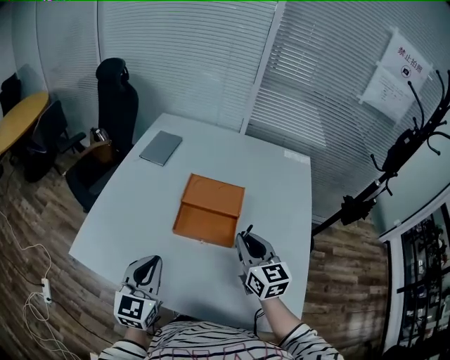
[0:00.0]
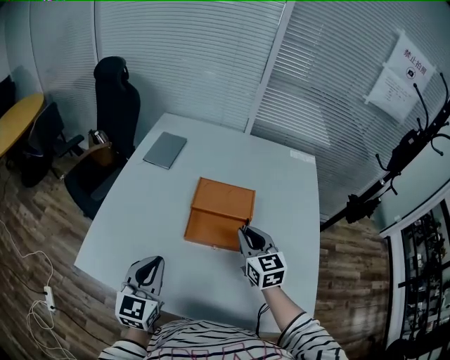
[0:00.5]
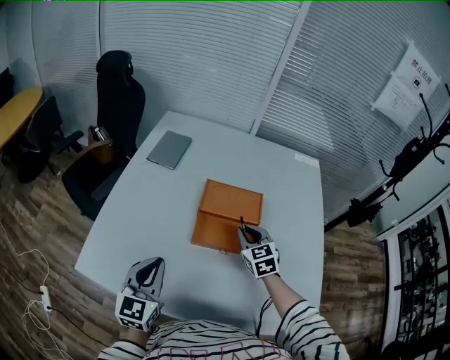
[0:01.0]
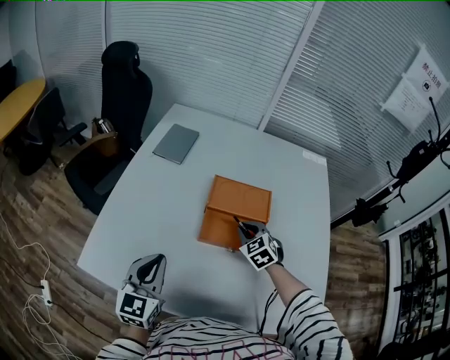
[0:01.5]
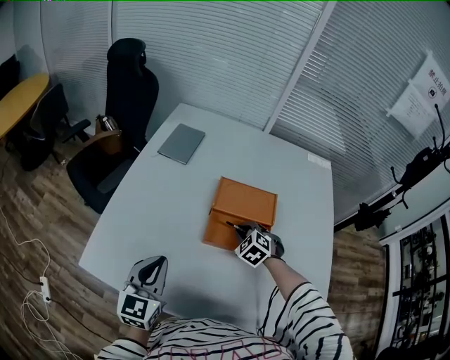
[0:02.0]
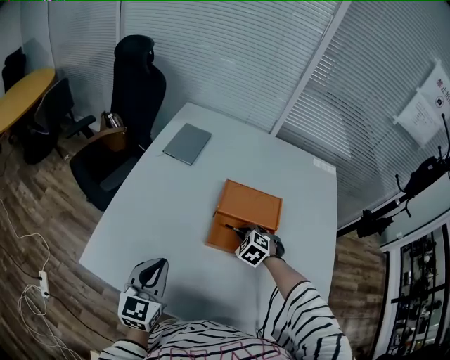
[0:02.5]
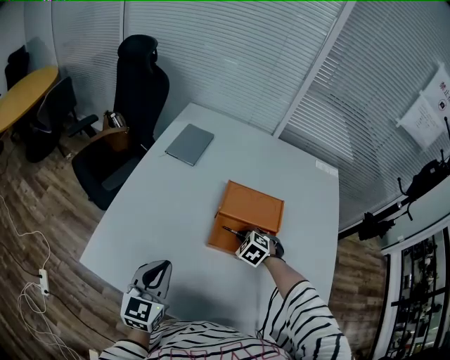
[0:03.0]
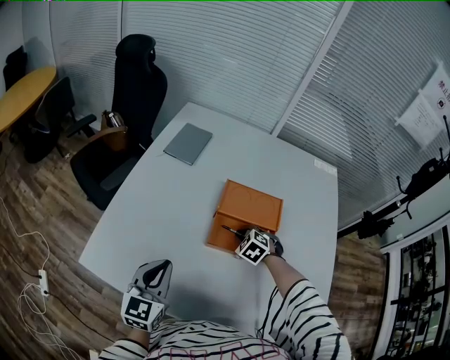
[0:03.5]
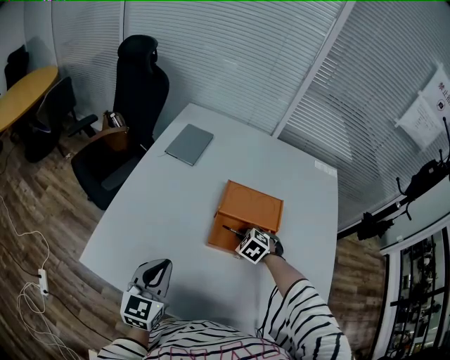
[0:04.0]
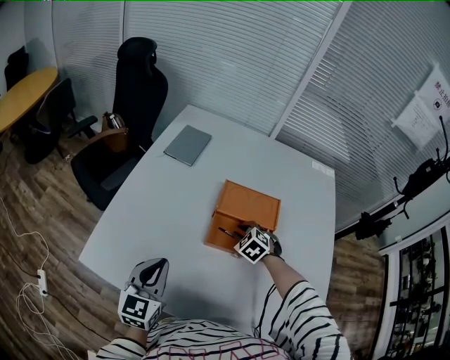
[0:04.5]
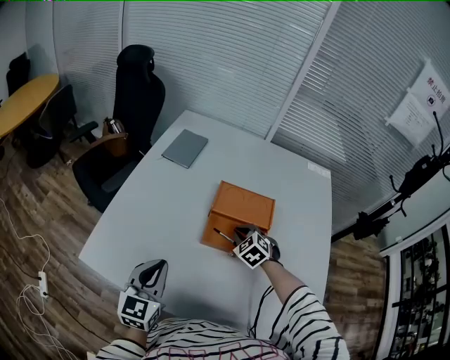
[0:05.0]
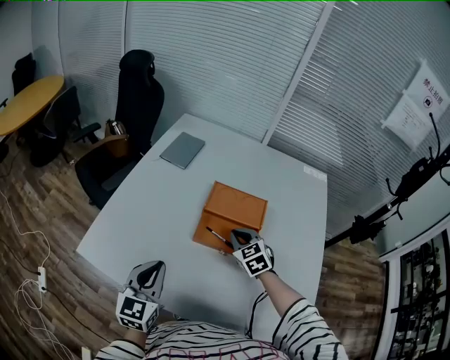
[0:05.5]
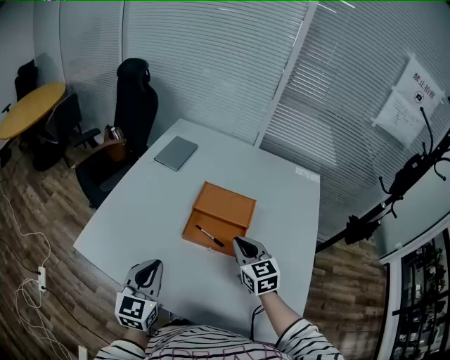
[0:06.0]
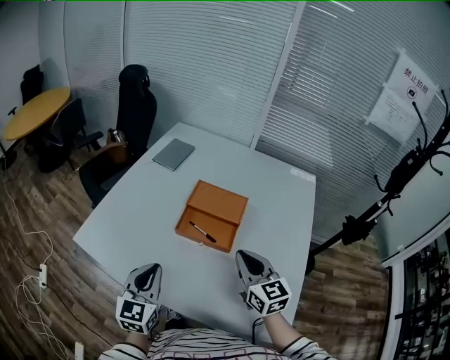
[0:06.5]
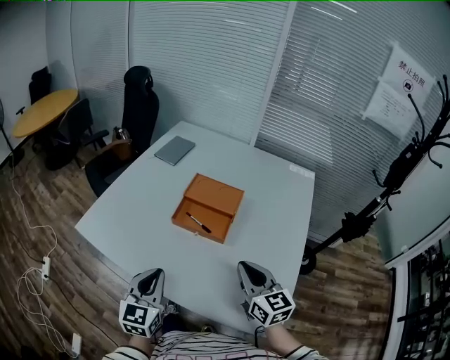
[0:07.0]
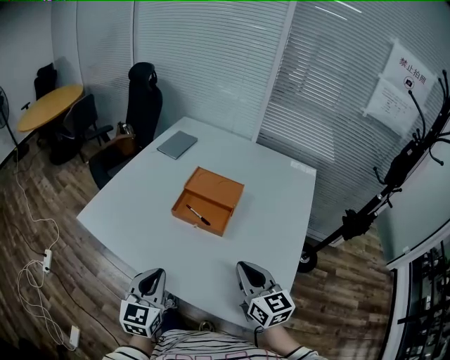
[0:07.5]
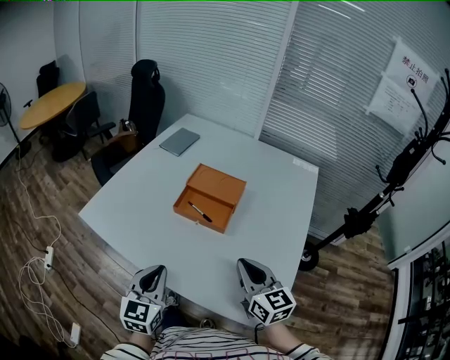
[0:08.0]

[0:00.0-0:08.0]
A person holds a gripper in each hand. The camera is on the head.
0:00.0 to 0:02.0: The left gripper is displaced to the left and forward by about 10 cm, while the right gripper shifts roughly 25 cm downward, forward and to the left, and tips its fingers downward by about 40 degrees.
0:02.0 to 0:04.0: The grippers move only a little.
0:04.0 to 0:06.0: The right gripper moves upward and backward, some 20 cm, and points its fingers roughly 40 degrees further upward. Meanwhile the left gripper shifts roughly 10 cm to the right, backward and upward.
0:06.0 to 0:08.0: The right gripper travels backward by roughly 20 cm. The left gripper goes some 15 cm backward and to the right.

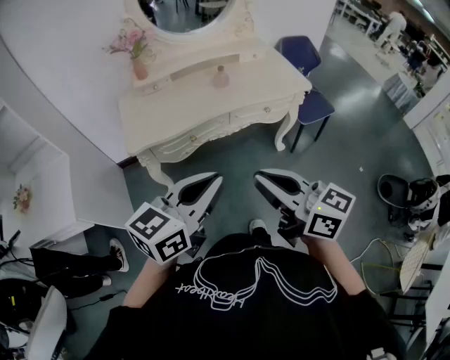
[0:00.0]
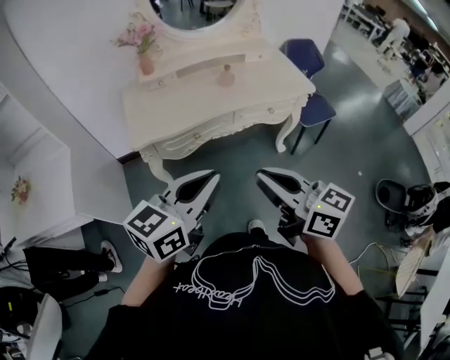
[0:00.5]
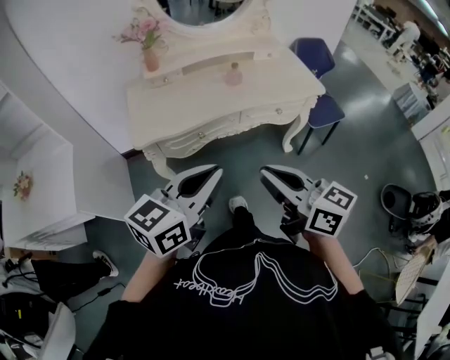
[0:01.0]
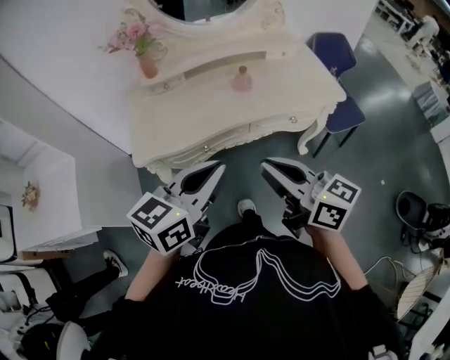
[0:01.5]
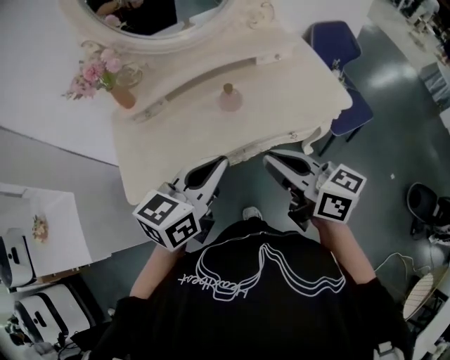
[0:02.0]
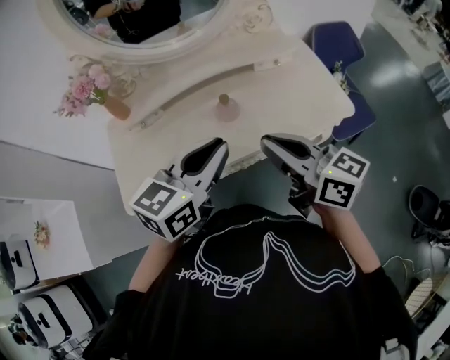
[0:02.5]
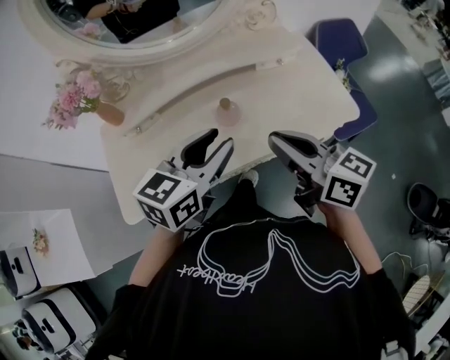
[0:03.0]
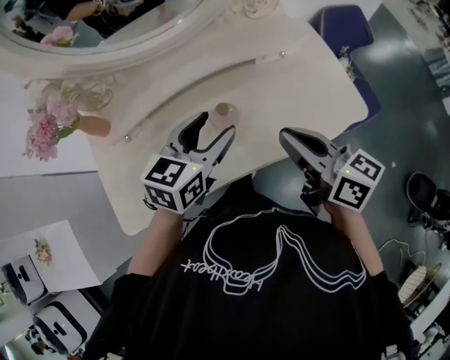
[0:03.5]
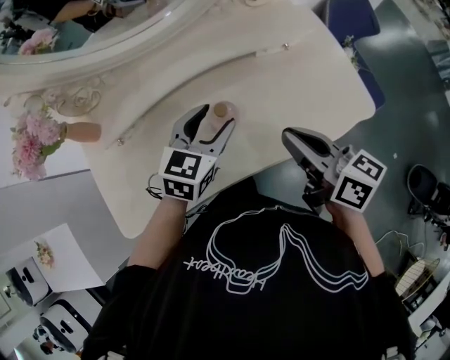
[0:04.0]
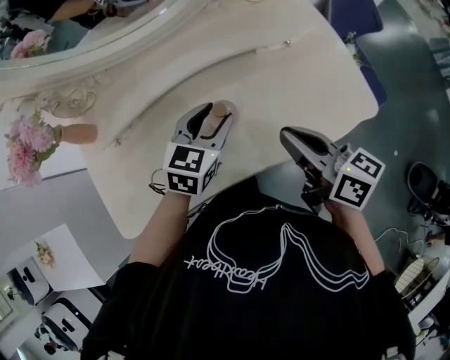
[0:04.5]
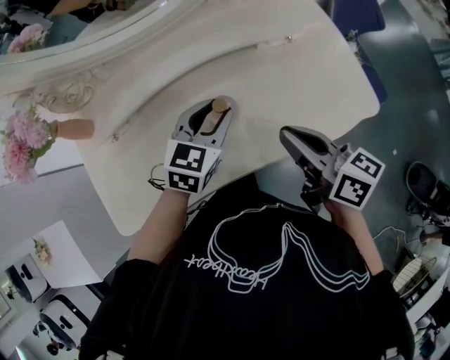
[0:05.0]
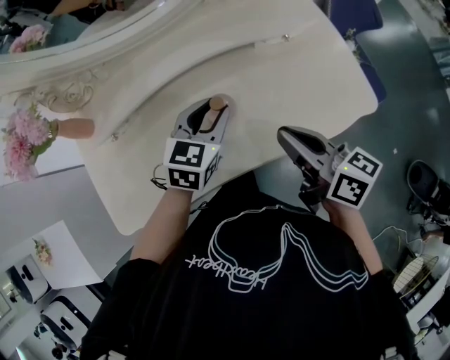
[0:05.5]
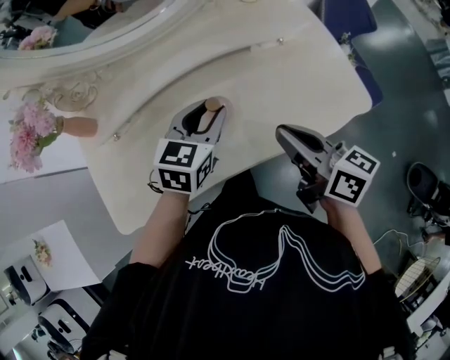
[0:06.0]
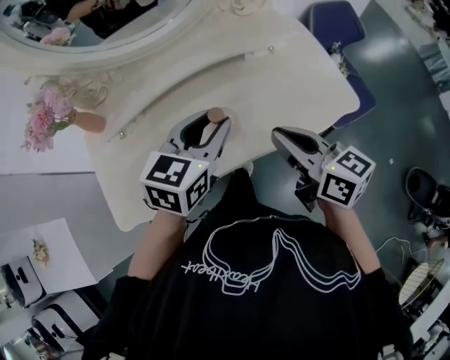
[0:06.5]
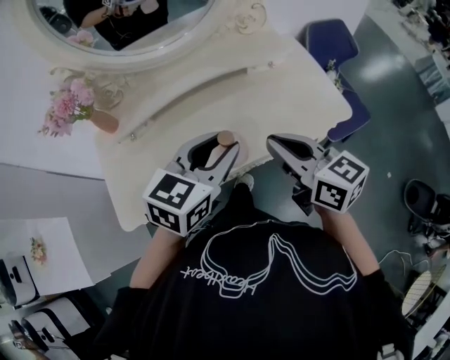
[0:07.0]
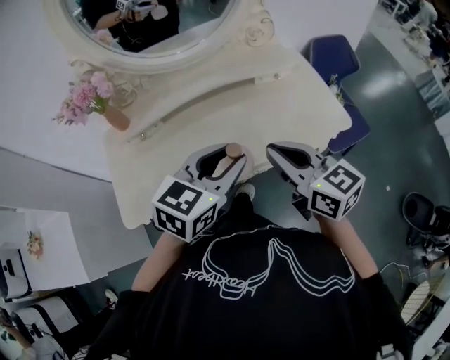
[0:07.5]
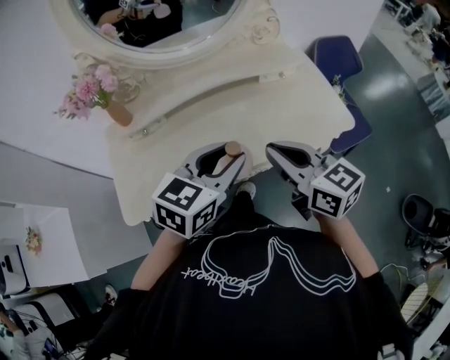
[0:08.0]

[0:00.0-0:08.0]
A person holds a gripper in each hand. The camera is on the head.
0:00.0 to 0:02.0: The grippers both shift forward by some 30 cm.
0:02.0 to 0:04.0: The two grippers go roughly 25 cm forward and downward. The left gripper rotates roughly 20 degrees, and opens its fingers.
0:04.0 to 0:06.0: The left gripper closes.
0:06.0 to 0:08.0: The left gripper moves backward and upward, roughly 20 cm. Meanwhile the right gripper shifts about 15 cm backward, upward and to the left, and rotates about 30 degrees.

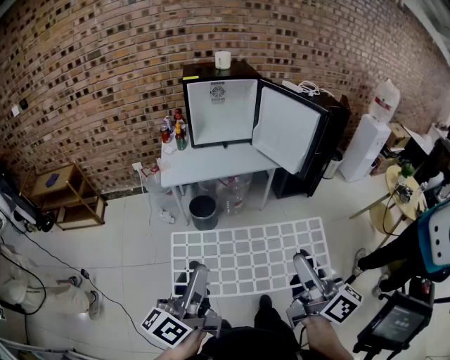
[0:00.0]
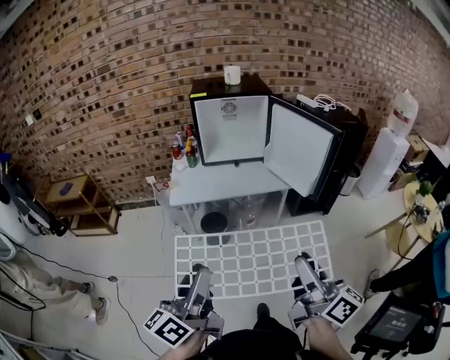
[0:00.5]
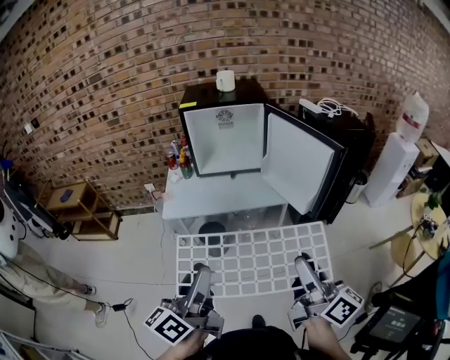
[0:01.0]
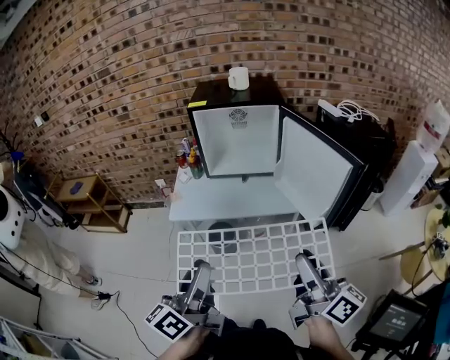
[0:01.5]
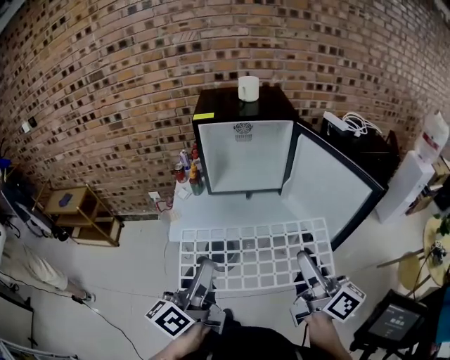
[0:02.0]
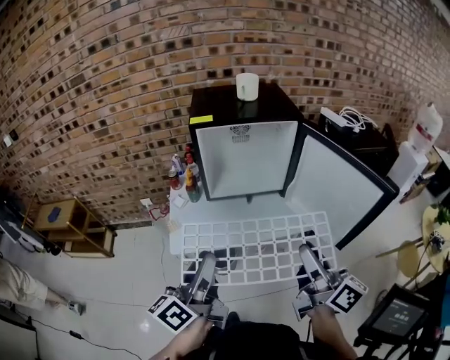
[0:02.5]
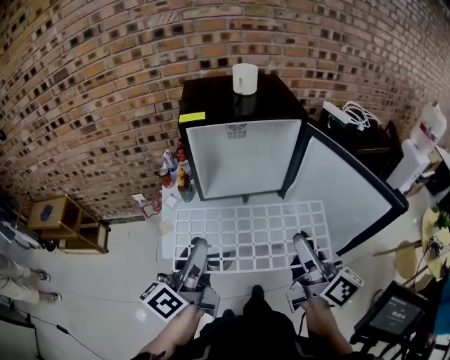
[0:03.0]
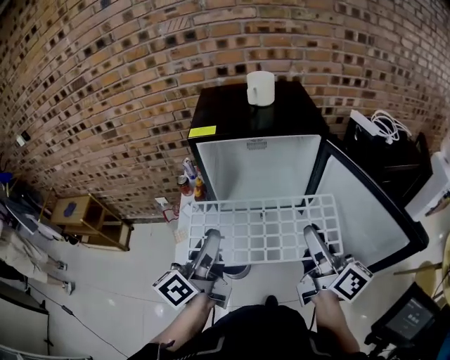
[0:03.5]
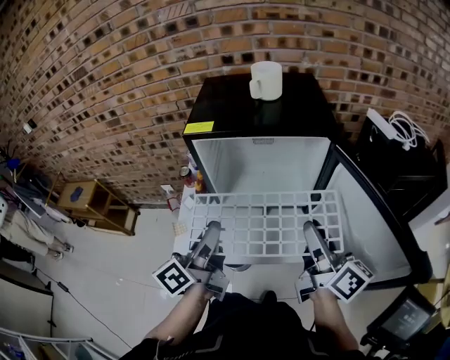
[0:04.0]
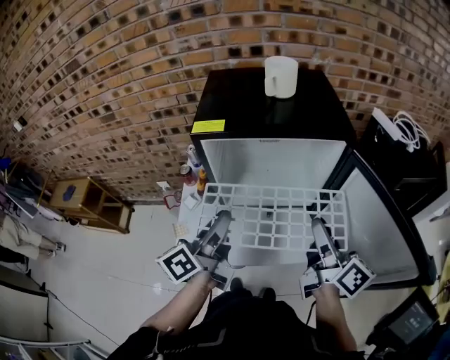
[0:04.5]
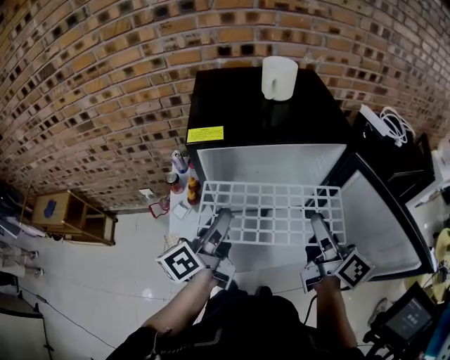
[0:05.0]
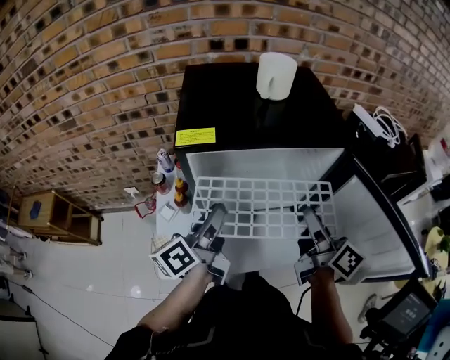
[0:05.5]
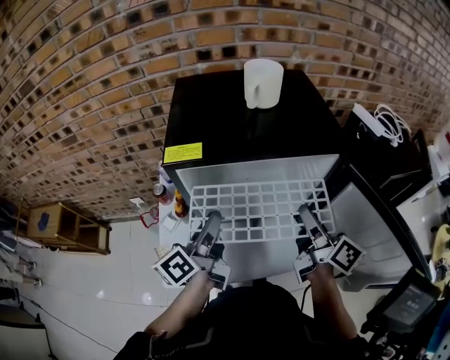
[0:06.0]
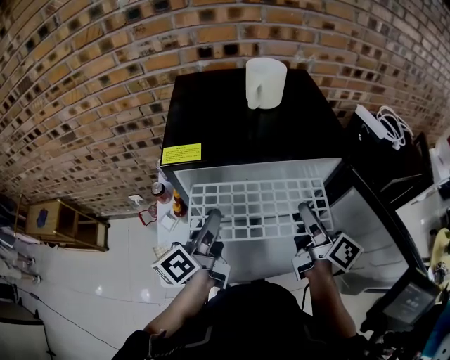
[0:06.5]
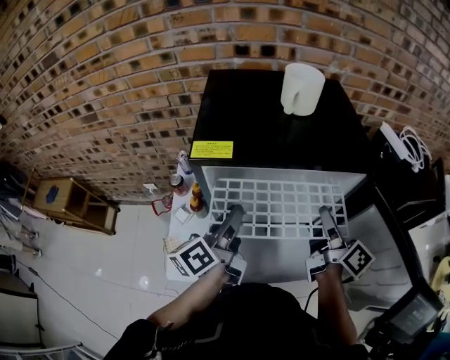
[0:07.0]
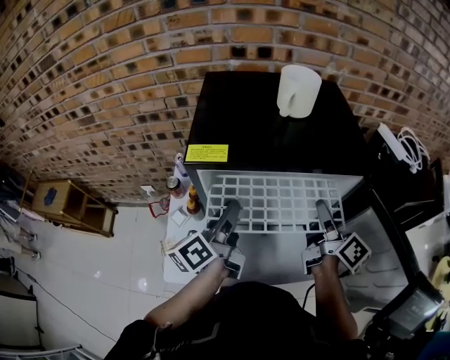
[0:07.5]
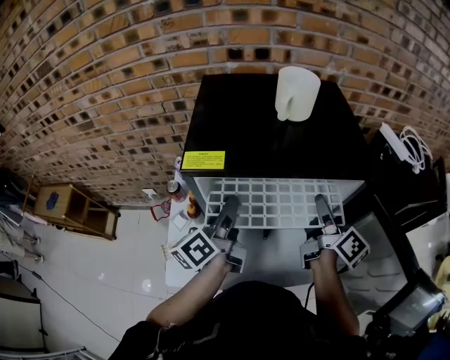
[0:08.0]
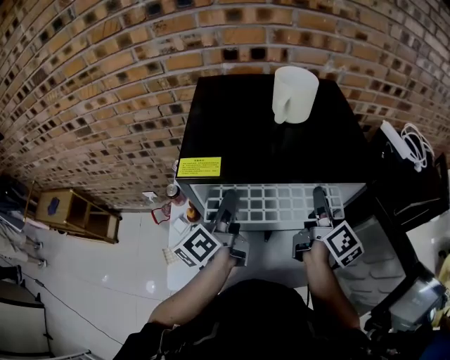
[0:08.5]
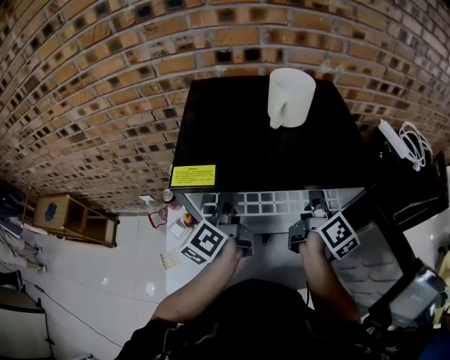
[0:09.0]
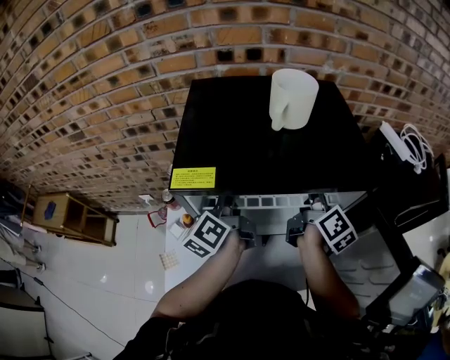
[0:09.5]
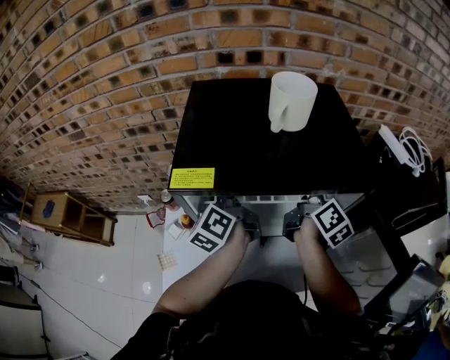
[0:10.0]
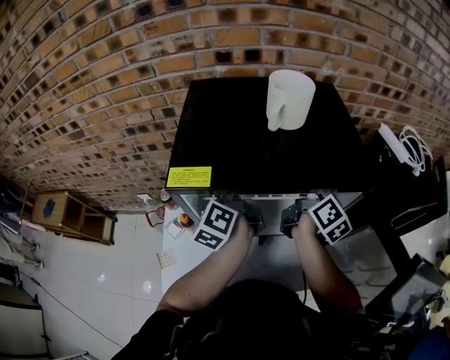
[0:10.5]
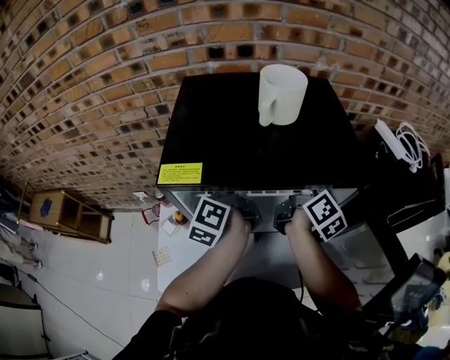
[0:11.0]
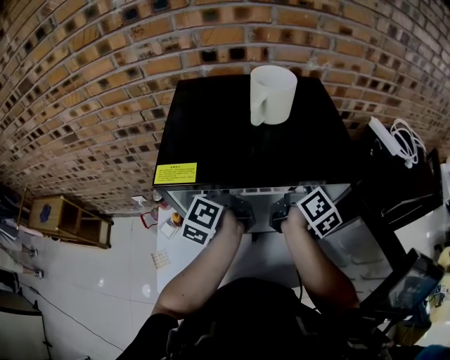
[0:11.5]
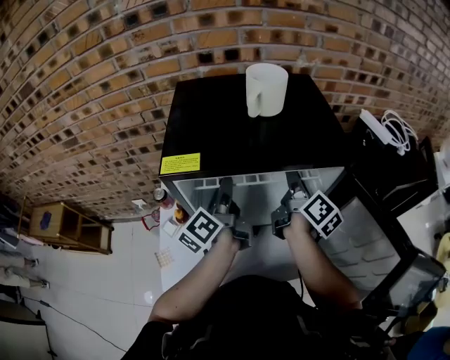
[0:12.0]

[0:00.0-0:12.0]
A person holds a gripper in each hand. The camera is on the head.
0:00.0 to 0:02.0: The two grippers go approximately 35 cm forward.
0:02.0 to 0:04.0: Both grippers travel together forward, some 30 cm.
0:04.0 to 0:06.0: The grippers both shift forward by about 15 cm.
0:06.0 to 0:08.0: The two grippers go some 10 cm forward.
0:08.0 to 0:10.0: Both grippers move forward, some 10 cm. The left gripper rotates some 20 degrees.
0:10.0 to 0:12.0: The left gripper moves approximately 5 cm.
